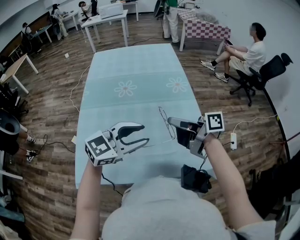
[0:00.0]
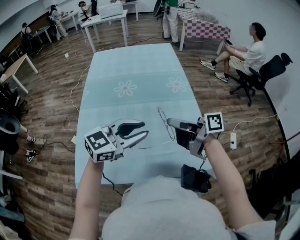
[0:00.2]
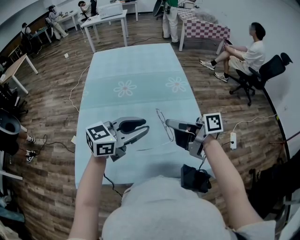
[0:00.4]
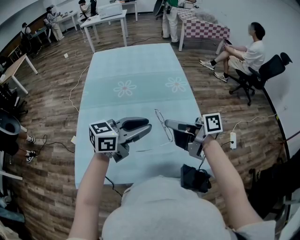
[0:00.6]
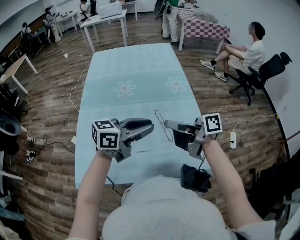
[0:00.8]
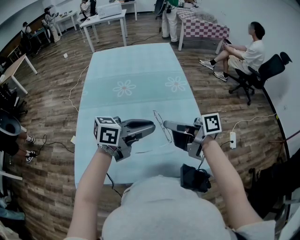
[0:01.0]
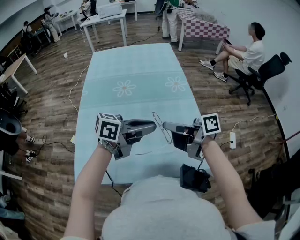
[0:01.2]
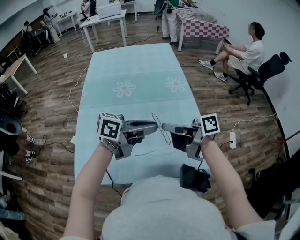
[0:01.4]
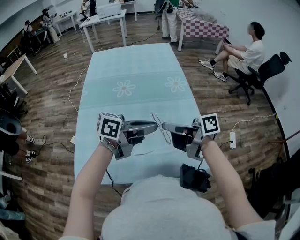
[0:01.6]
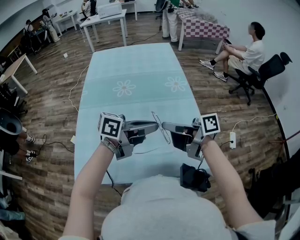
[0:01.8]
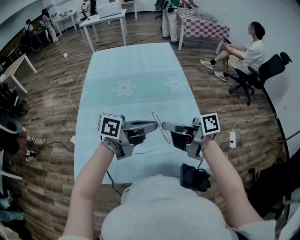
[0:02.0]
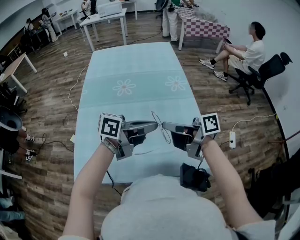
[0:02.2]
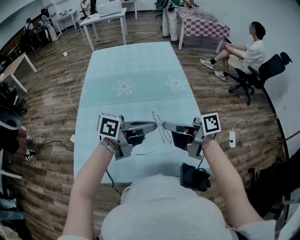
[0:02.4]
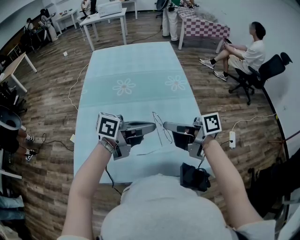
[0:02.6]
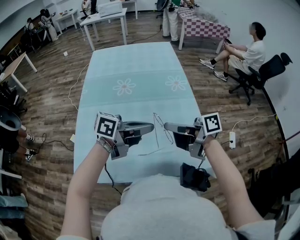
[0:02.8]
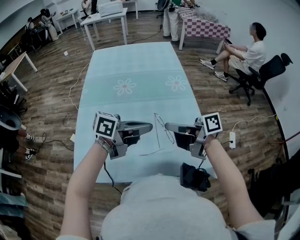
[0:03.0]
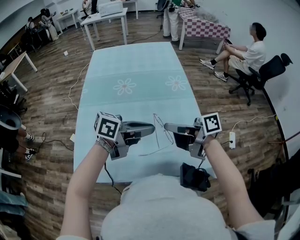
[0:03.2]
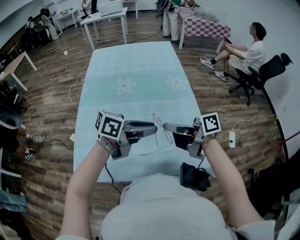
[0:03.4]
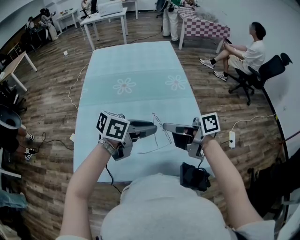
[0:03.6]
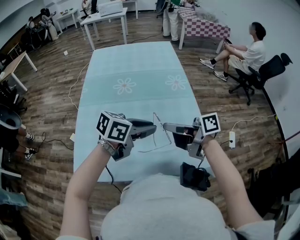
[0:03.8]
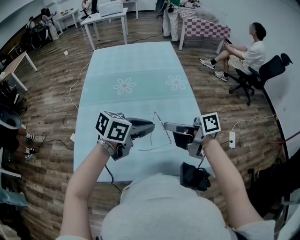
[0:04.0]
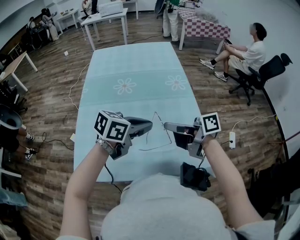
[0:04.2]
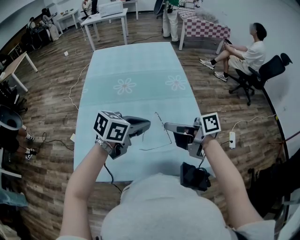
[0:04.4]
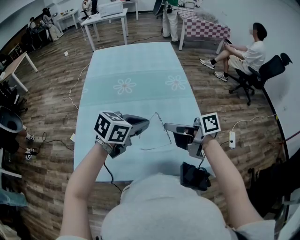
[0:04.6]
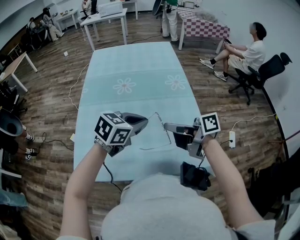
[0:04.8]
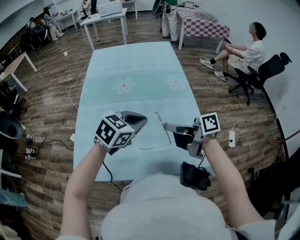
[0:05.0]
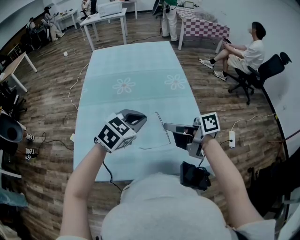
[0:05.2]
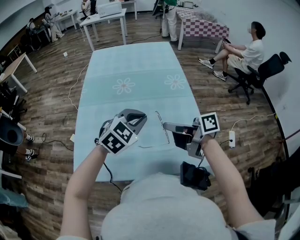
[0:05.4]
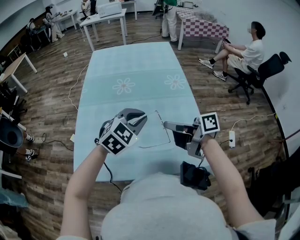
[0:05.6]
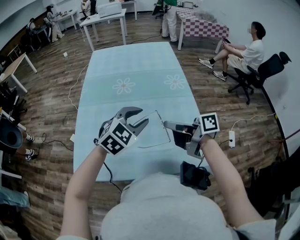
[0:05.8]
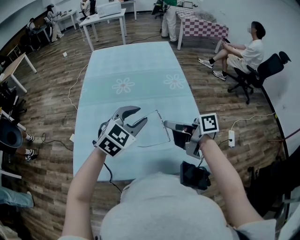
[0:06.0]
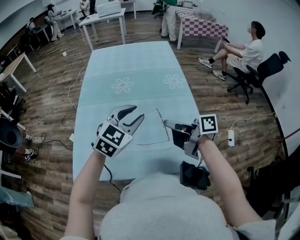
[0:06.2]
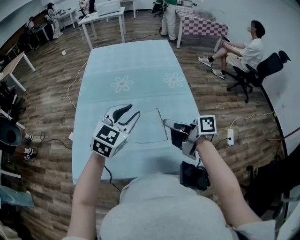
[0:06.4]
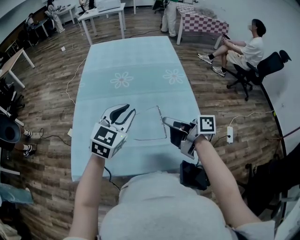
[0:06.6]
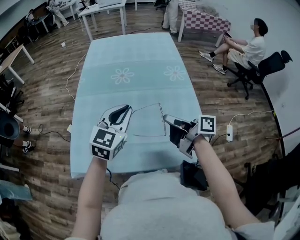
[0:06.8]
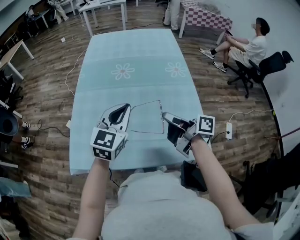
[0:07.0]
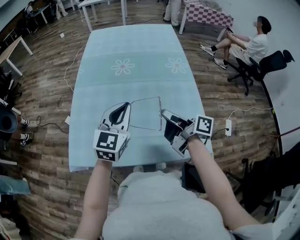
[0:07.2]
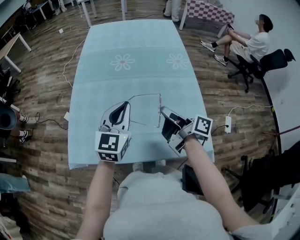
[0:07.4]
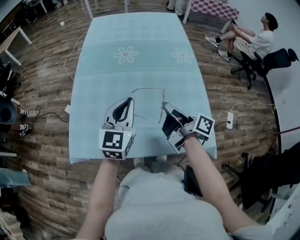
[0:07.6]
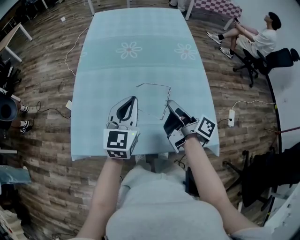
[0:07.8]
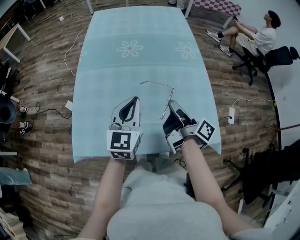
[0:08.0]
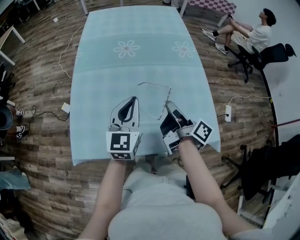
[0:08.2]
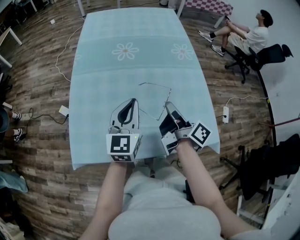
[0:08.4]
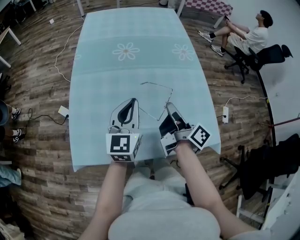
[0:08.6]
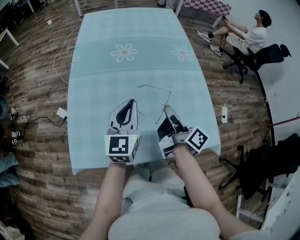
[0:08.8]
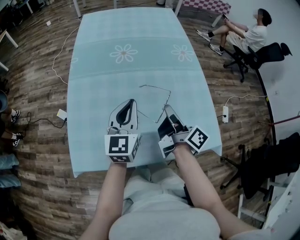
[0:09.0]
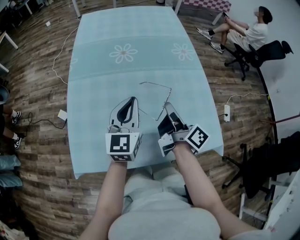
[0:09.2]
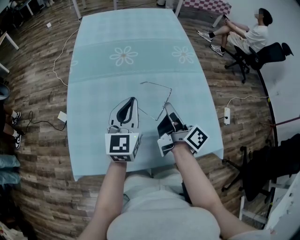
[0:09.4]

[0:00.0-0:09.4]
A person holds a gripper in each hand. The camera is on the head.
0:00.0 to 0:01.6: The left gripper changes place by about 5 cm, rotates around the line of its fingers by some 50 degrees, counterclockwise from behind, and closes up.
0:01.6 to 0:03.2: The grippers move only a little.
0:03.2 to 0:04.8: The left gripper changes its angle by roughly 40 degrees, and opens, then closes once more.
0:04.8 to 0:06.2: The left gripper changes its angle by approximately 30 degrees, and opens its fingers.
0:06.2 to 0:07.8: The right gripper moves downward, some 5 cm, and swivels approximately 30 degrees, while the left gripper heads to the left, covering approximately 5 cm, rotates roughly 30 degrees, and closes up.
0:07.8 to 0:09.4: The left gripper goes about 5 cm forward.

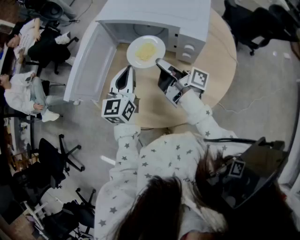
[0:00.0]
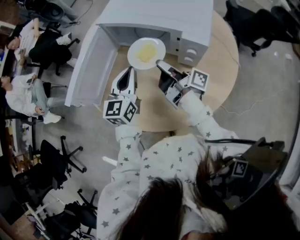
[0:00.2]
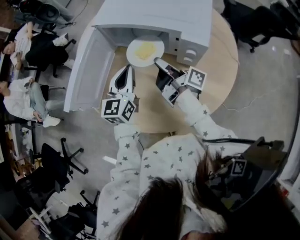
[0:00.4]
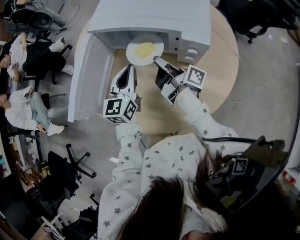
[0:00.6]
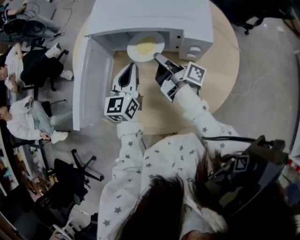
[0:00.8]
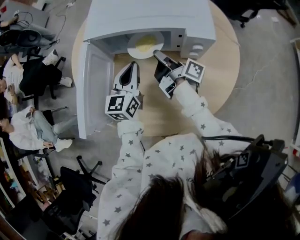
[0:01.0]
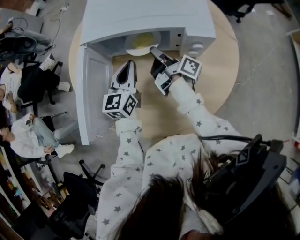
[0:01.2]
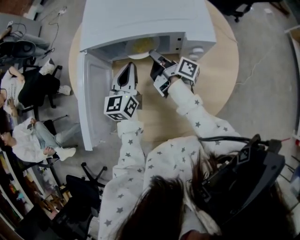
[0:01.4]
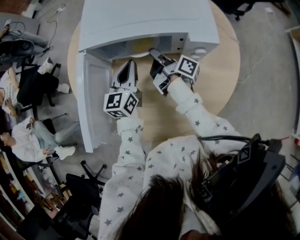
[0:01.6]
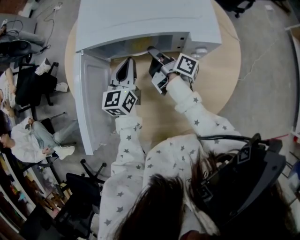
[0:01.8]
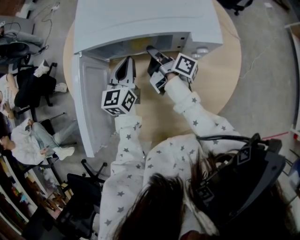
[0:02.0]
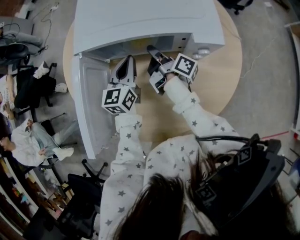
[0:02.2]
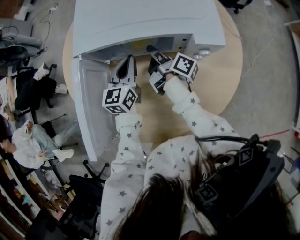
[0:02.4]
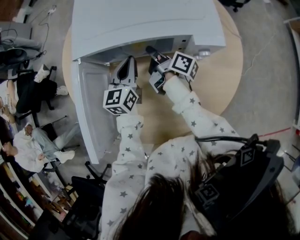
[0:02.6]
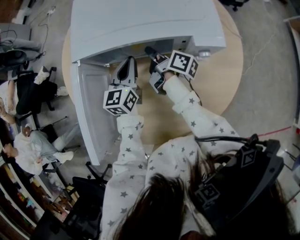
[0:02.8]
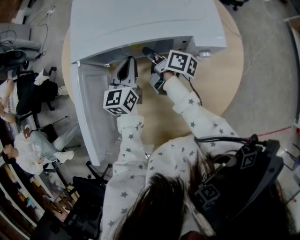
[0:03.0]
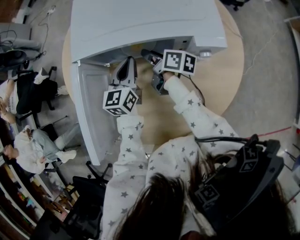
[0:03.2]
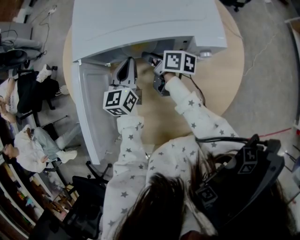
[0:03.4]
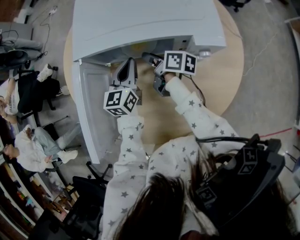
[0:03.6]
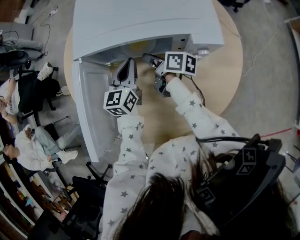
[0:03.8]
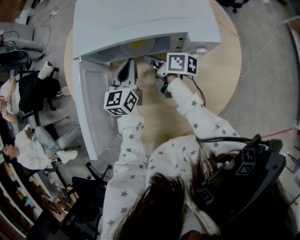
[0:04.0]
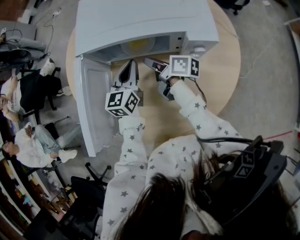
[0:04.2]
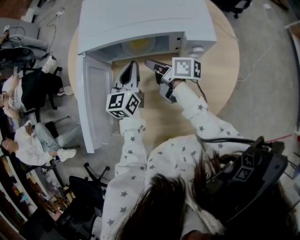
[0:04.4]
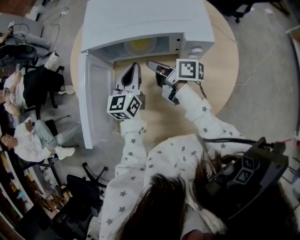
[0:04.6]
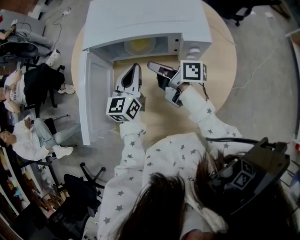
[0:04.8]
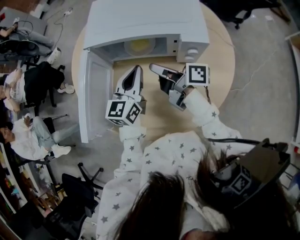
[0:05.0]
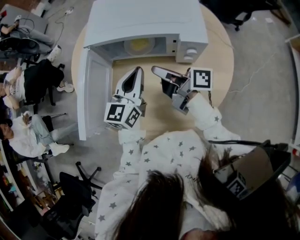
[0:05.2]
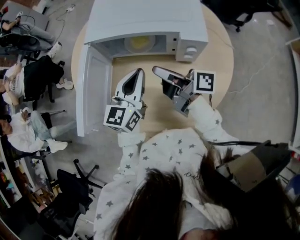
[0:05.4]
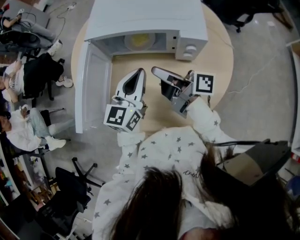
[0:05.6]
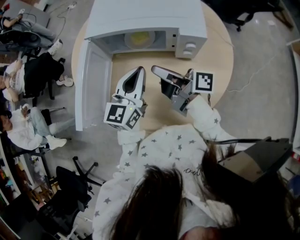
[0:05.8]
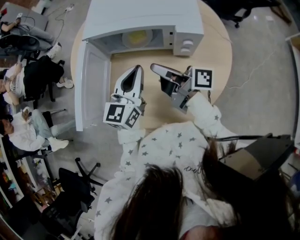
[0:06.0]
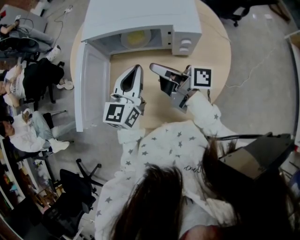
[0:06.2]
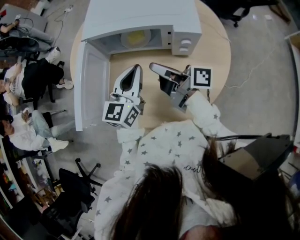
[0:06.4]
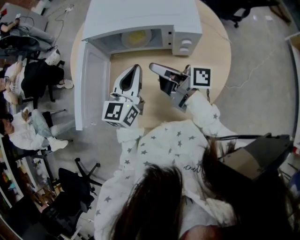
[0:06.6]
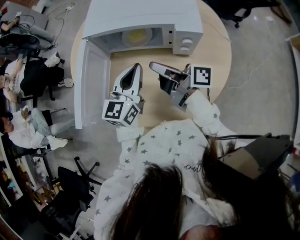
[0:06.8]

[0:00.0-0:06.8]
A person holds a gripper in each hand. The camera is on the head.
0:00.0 to 0:01.4: The left gripper ends up about 5 cm from where it was.
0:04.0 to 0:05.4: The left gripper ends up approximately 15 cm from where it was.

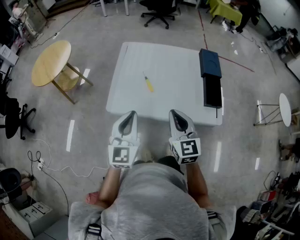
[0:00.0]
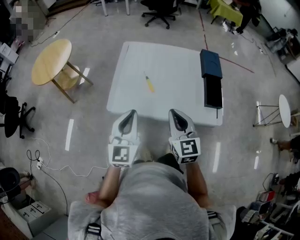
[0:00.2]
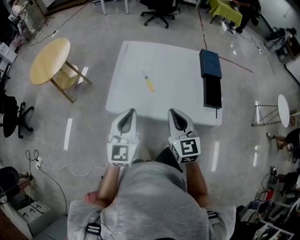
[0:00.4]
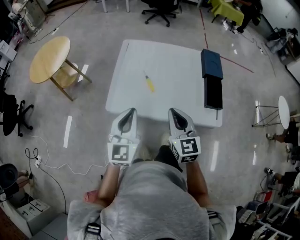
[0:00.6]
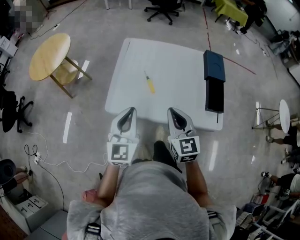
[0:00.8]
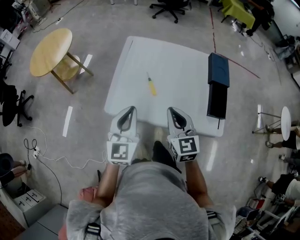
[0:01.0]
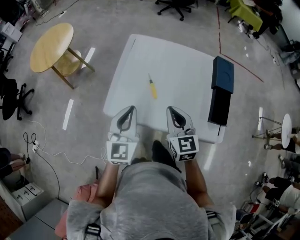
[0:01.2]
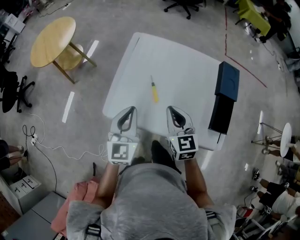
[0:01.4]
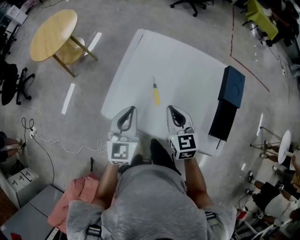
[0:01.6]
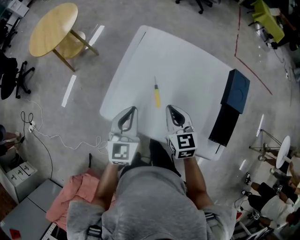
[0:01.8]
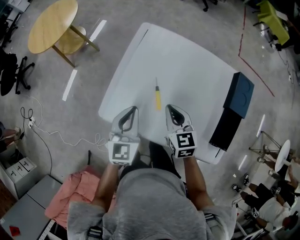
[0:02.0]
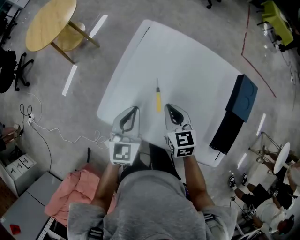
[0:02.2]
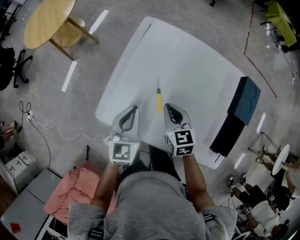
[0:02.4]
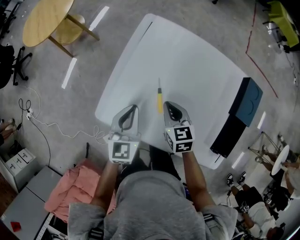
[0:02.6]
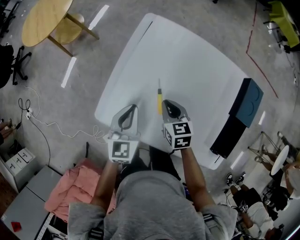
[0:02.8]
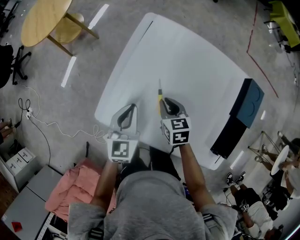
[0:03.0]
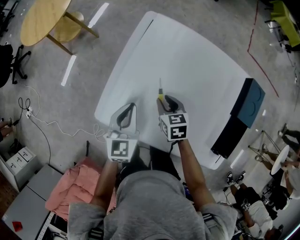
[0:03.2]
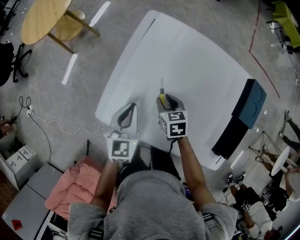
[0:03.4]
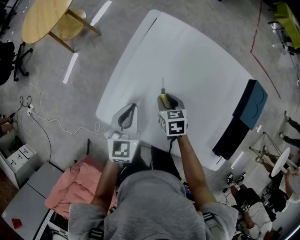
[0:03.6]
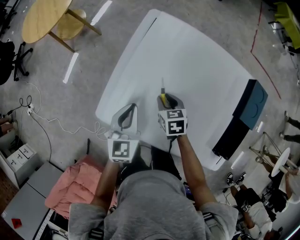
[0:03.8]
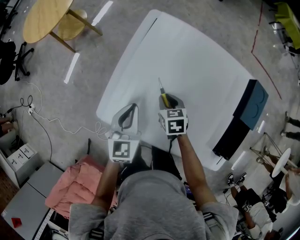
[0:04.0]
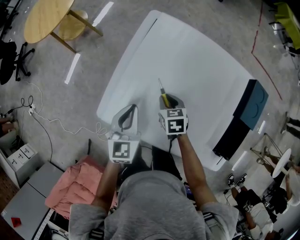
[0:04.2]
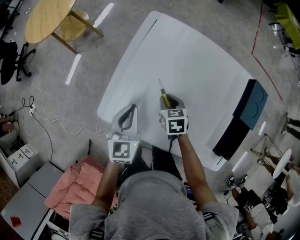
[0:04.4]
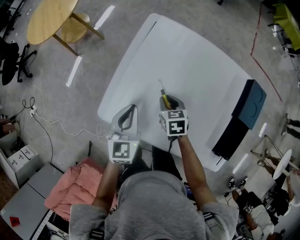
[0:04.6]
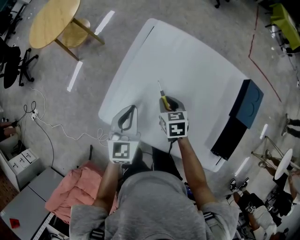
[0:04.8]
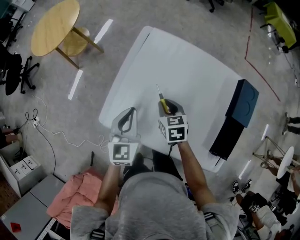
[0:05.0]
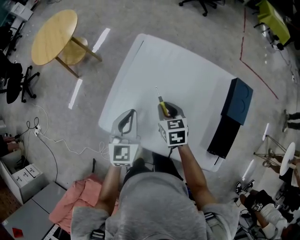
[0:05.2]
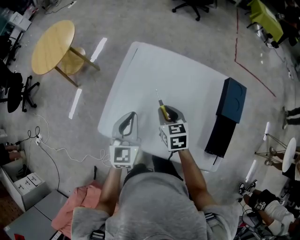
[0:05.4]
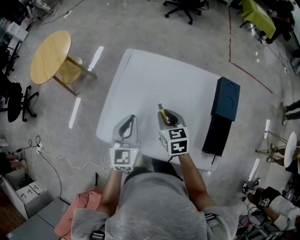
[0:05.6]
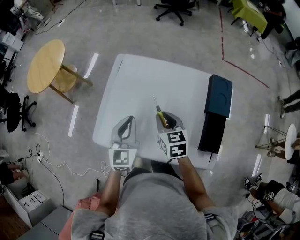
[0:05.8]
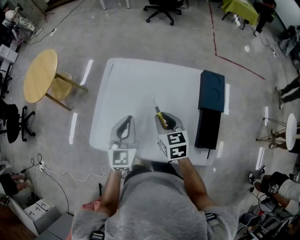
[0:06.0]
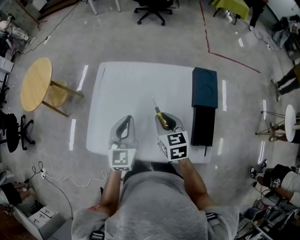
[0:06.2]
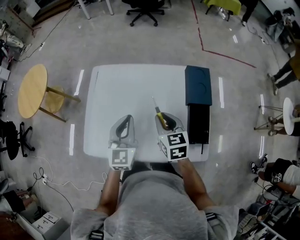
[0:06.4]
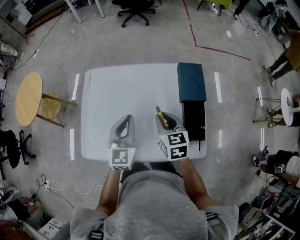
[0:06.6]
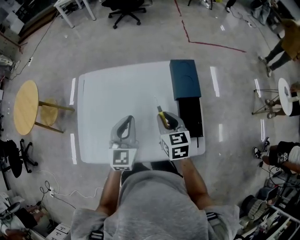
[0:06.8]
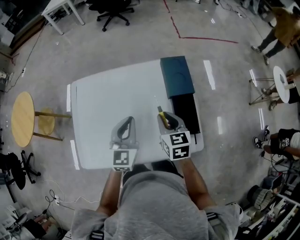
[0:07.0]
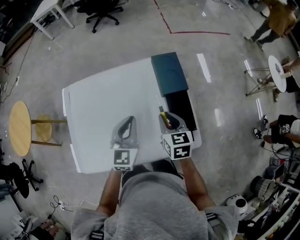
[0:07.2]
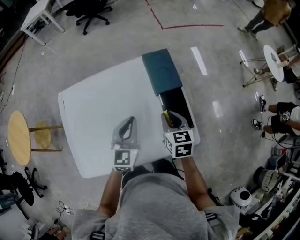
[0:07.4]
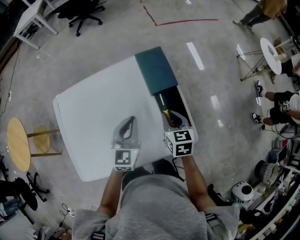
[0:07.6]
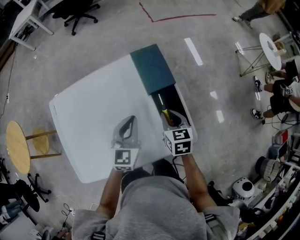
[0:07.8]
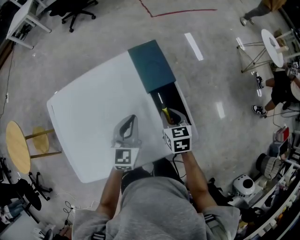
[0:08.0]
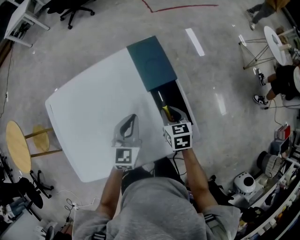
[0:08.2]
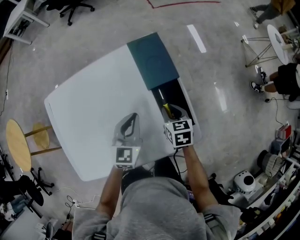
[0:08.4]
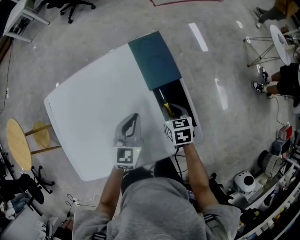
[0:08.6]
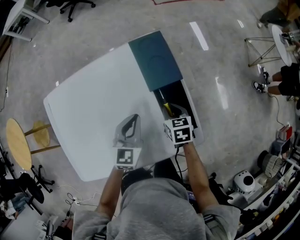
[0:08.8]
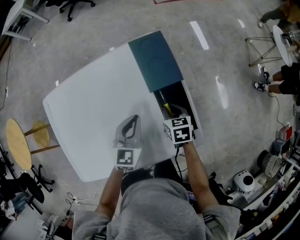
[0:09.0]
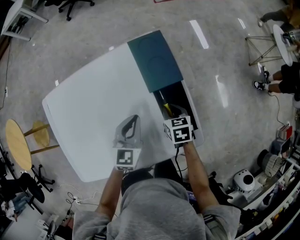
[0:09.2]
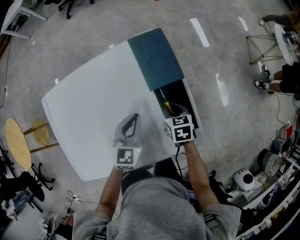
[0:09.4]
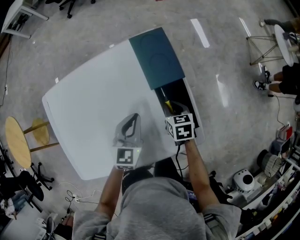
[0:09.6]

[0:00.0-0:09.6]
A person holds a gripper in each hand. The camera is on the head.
0:00.0 to 0:01.6: Both grippers move forward and downward, approximately 20 cm.
0:01.6 to 0:03.2: Both grippers move downward and forward, approximately 20 cm. The right gripper turns by approximately 30 degrees, and opens its fingers.
0:03.2 to 0:04.8: The grippers move only a little.
0:04.8 to 0:06.4: The grippers both shift to the right and upward by some 25 cm. The left gripper turns by approximately 20 degrees; the right gripper turns by approximately 30 degrees.
0:06.4 to 0:08.0: The left gripper ends up about 25 cm from where it was, and rotates about 30 degrees; the right gripper ends up roughly 25 cm from where it was, and swivels some 30 degrees.
0:08.0 to 0:09.6: The right gripper is displaced downward by approximately 10 cm. Meanwhile the left gripper goes some 5 cm downward.
